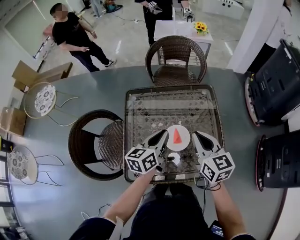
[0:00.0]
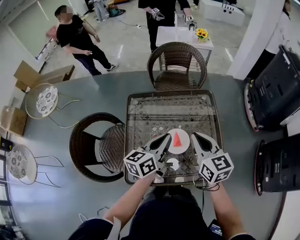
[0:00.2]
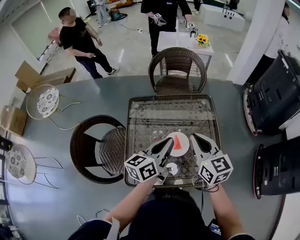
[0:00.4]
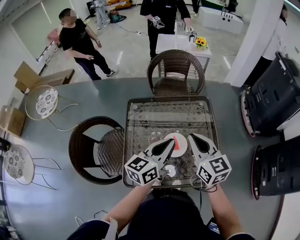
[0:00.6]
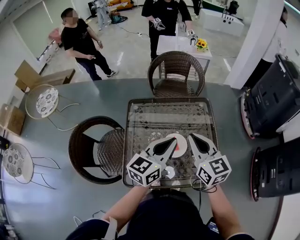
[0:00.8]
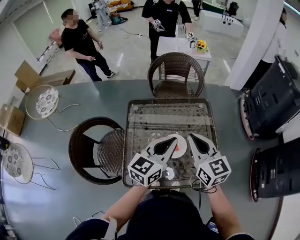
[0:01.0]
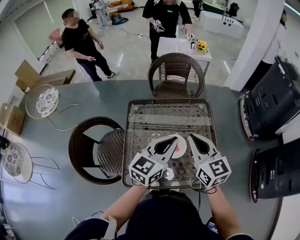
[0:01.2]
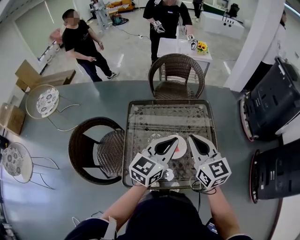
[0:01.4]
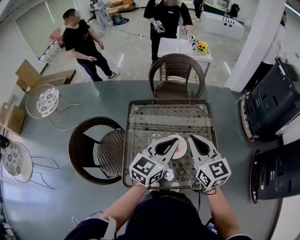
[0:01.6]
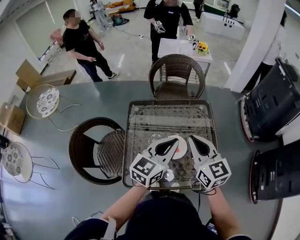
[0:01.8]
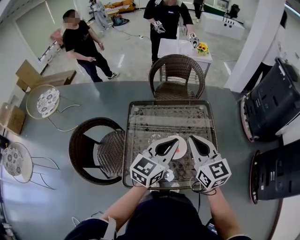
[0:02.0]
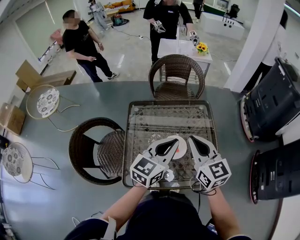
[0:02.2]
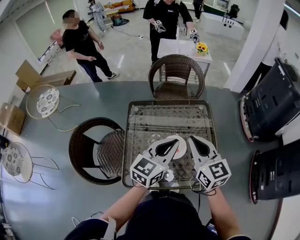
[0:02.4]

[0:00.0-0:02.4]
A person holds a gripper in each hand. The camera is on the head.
0:00.0 to 0:01.2: The left gripper moves upward, approximately 10 cm, and changes its angle by approximately 30 degrees; the right gripper shifts approximately 5 cm upward.
0:01.2 to 0:02.4: Both grippers stay about where they are.

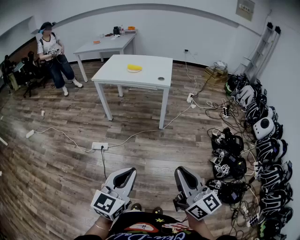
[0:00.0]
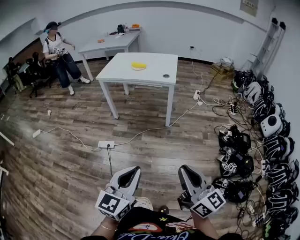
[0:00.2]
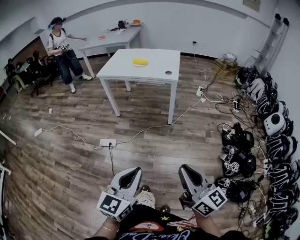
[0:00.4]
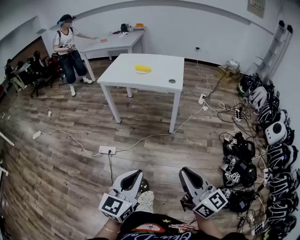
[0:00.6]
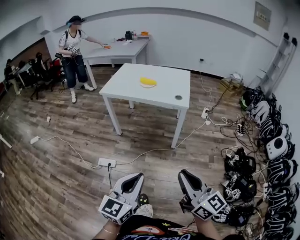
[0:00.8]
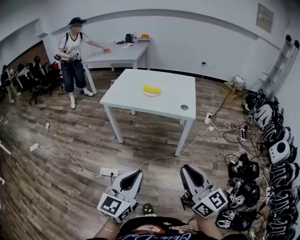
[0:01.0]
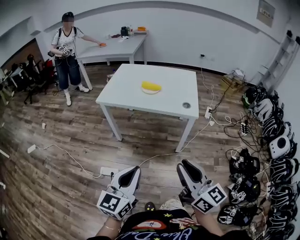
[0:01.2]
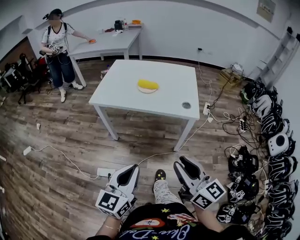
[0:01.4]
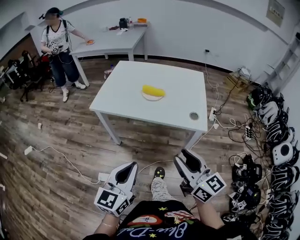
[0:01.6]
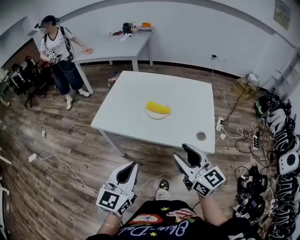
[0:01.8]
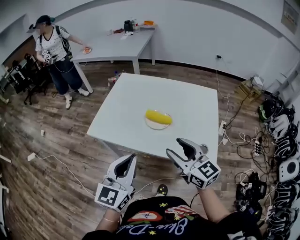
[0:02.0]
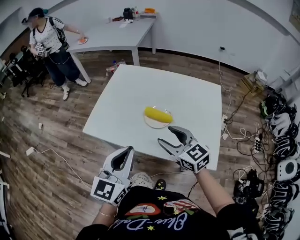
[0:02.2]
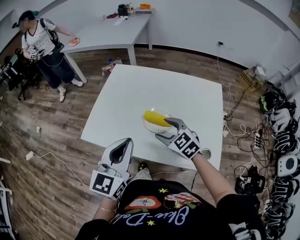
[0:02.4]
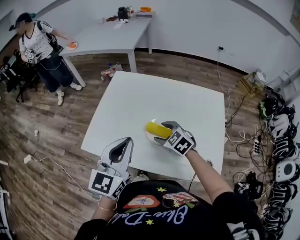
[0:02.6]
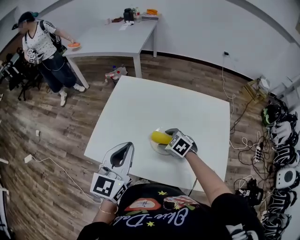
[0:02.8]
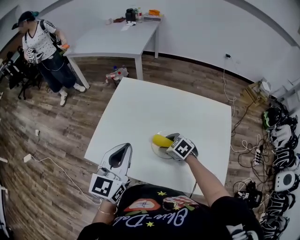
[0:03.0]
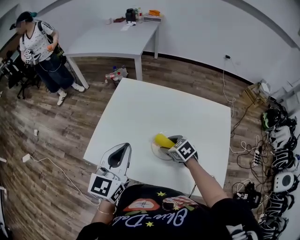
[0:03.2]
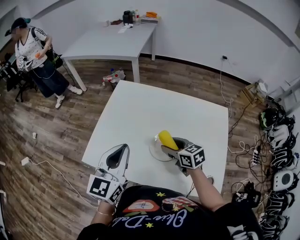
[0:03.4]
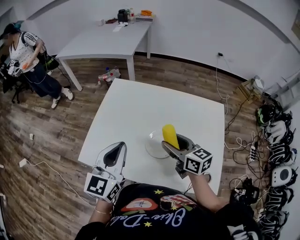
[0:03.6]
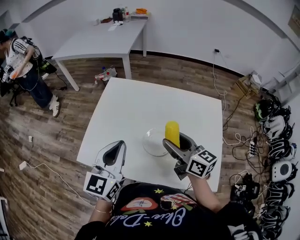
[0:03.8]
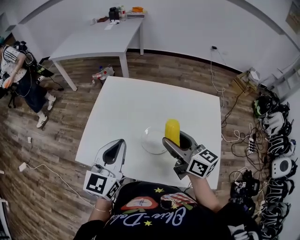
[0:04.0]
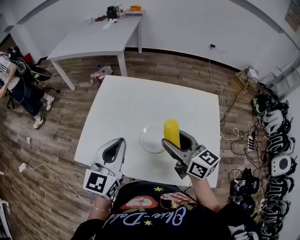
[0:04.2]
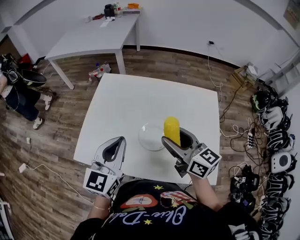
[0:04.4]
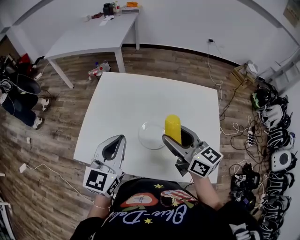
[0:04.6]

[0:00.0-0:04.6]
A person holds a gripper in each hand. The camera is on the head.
0:00.0 to 0:01.6: The two grippers travel together, forward, some 60 cm. The right gripper opens its fingers.
0:01.6 to 0:03.0: The two grippers travel together, forward, roughly 50 cm. The right gripper goes approximately 25 cm downward, points its fingers about 60 degrees further downward, and opens its fingers.
0:03.0 to 0:04.6: The right gripper moves upward, roughly 25 cm, and tilts its fingers roughly 50 degrees upward.

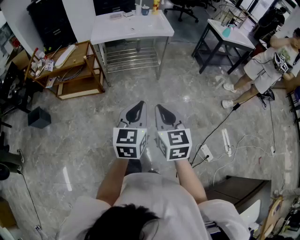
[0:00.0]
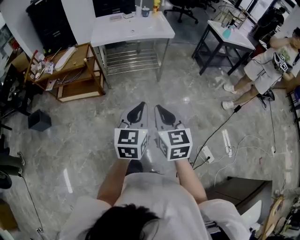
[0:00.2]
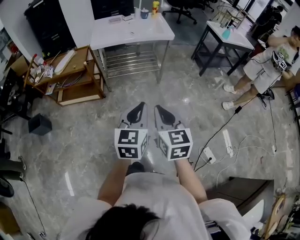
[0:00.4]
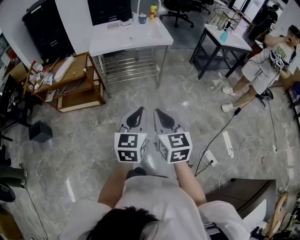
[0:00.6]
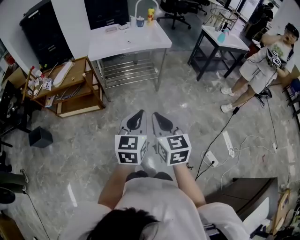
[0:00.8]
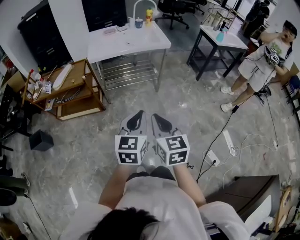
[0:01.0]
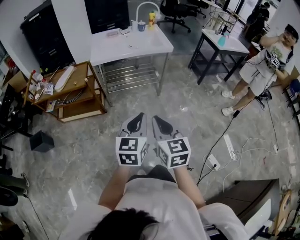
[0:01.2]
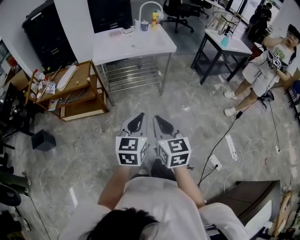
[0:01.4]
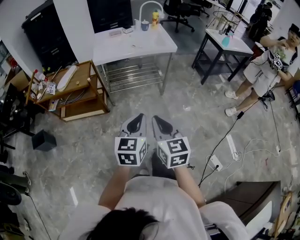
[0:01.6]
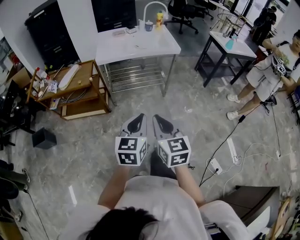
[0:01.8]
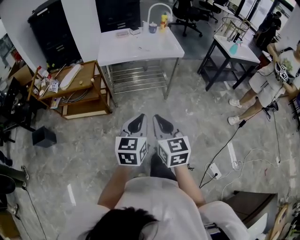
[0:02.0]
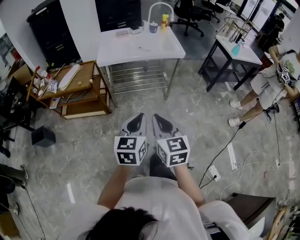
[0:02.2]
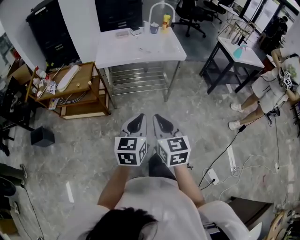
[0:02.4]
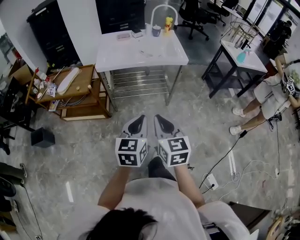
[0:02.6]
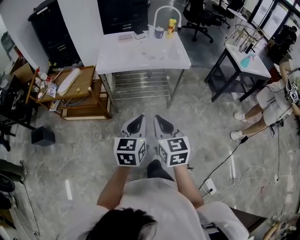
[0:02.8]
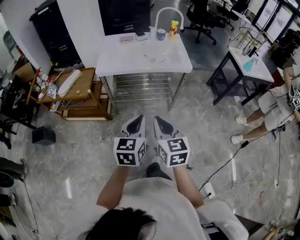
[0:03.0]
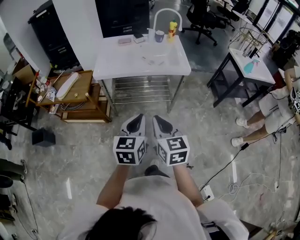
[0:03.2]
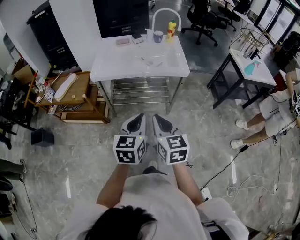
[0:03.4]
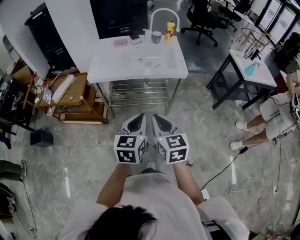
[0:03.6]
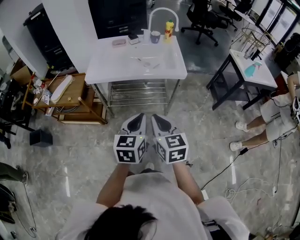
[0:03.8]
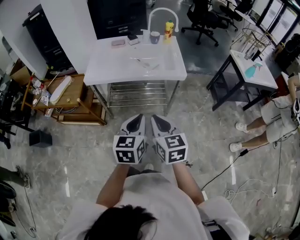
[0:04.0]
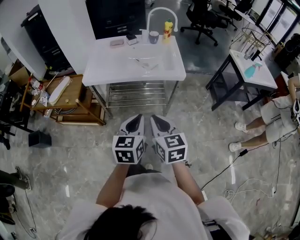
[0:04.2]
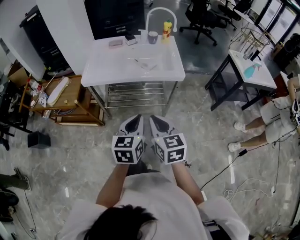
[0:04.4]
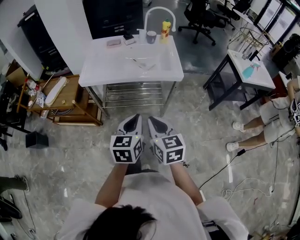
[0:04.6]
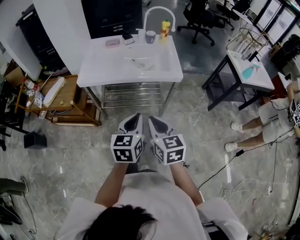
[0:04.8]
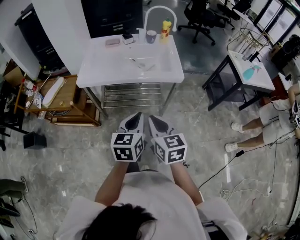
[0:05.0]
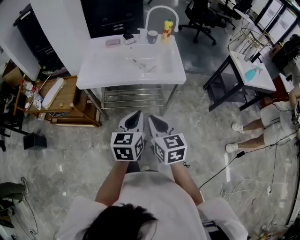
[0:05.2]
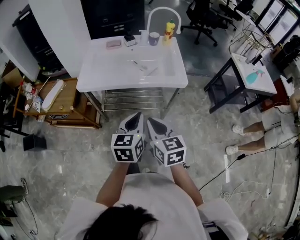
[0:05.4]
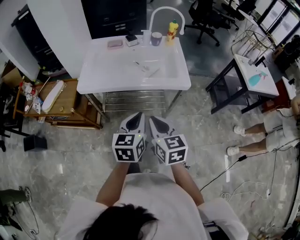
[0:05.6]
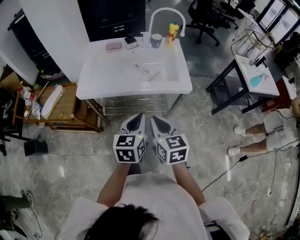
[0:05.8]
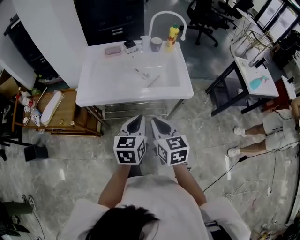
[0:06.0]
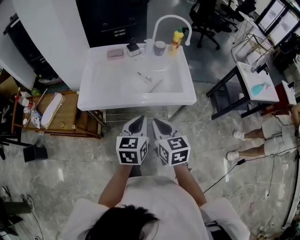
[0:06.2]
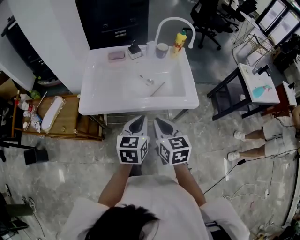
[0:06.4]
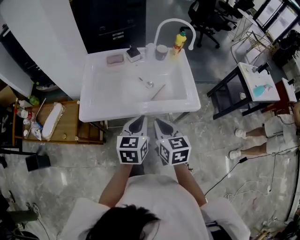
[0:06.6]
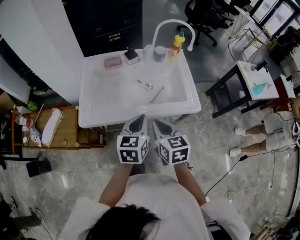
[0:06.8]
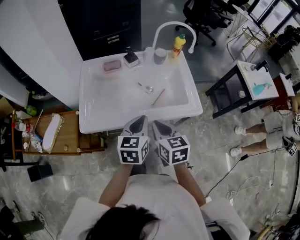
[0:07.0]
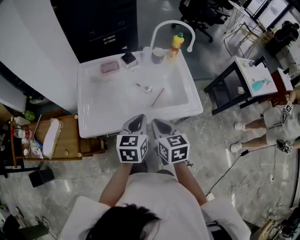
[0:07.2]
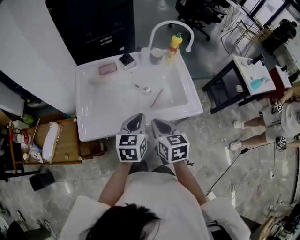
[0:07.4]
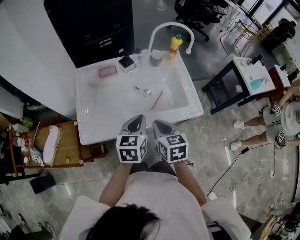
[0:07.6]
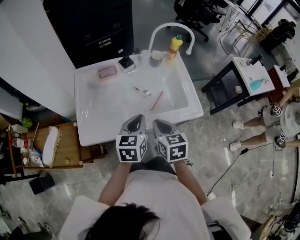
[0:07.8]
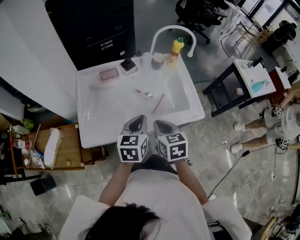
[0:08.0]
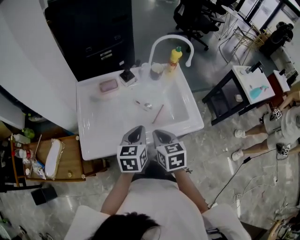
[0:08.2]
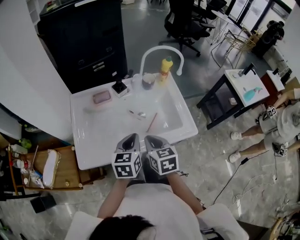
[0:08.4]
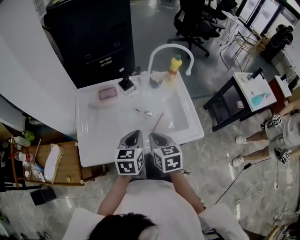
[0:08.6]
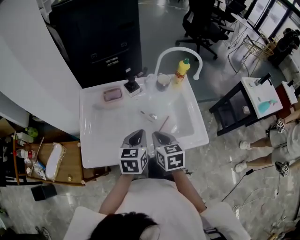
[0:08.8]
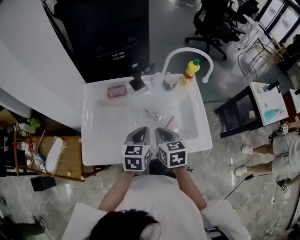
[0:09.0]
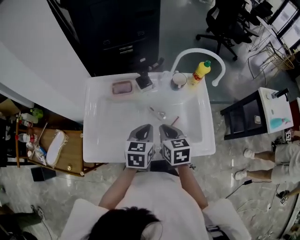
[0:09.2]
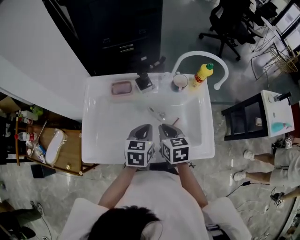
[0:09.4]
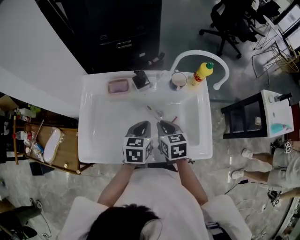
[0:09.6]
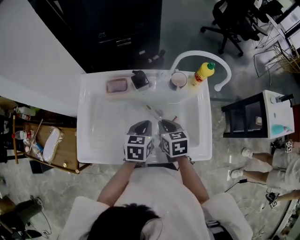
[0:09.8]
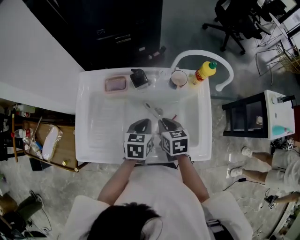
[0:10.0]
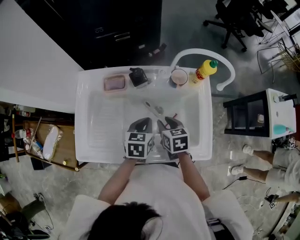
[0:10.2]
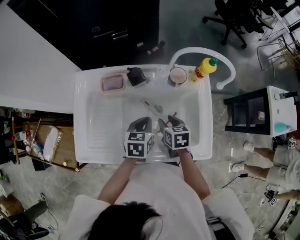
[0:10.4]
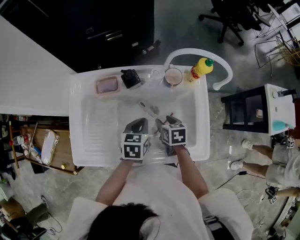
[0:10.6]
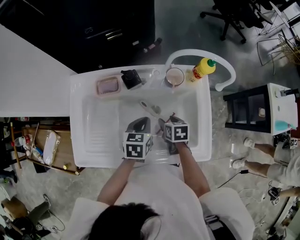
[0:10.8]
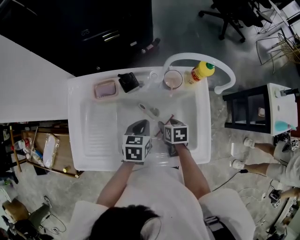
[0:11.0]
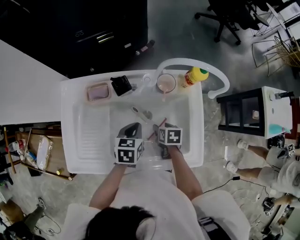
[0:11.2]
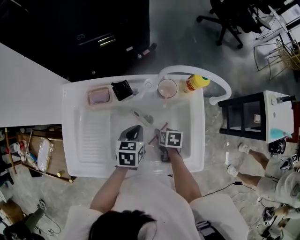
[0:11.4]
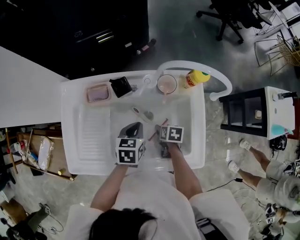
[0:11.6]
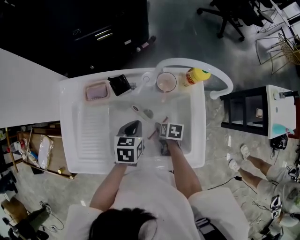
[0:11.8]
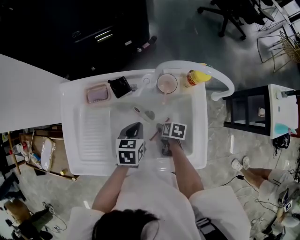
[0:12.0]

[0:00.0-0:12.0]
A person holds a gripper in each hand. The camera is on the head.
0:00.0 to 0:01.6: The left gripper moves forward and to the left, some 10 cm. The right gripper heads to the left and forward, covering roughly 10 cm.
0:01.6 to 0:03.0: Both grippers move forward, approximately 20 cm.
0:03.0 to 0:04.4: Both grippers travel together forward and to the right, approximately 15 cm.
0:04.4 to 0:06.0: The two grippers go some 15 cm forward.
0:06.0 to 0:07.6: The grippers both shift forward by roughly 20 cm.
0:07.6 to 0:09.0: The grippers both shift forward by approximately 10 cm.
0:09.0 to 0:10.4: The right gripper goes approximately 15 cm downward, forward and to the right, and opens up; the left gripper is displaced downward and forward by about 10 cm.
0:10.4 to 0:12.0: The right gripper goes roughly 15 cm downward and to the right, and swivels approximately 30 degrees.

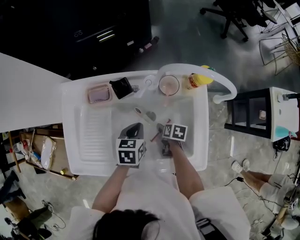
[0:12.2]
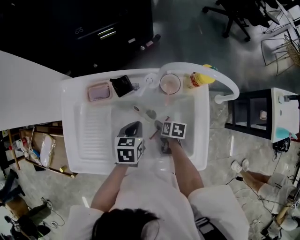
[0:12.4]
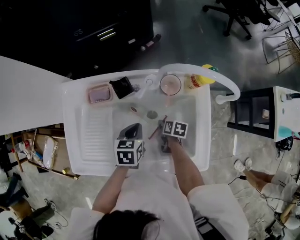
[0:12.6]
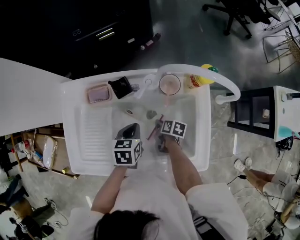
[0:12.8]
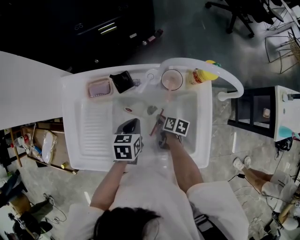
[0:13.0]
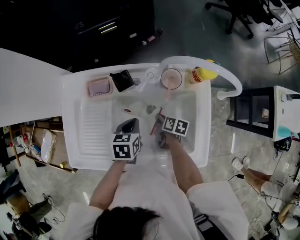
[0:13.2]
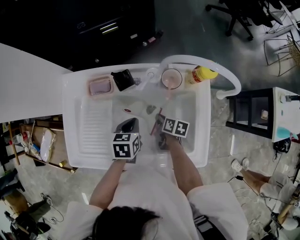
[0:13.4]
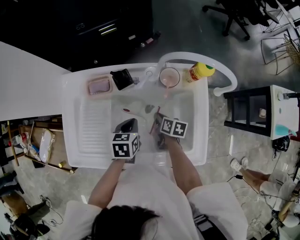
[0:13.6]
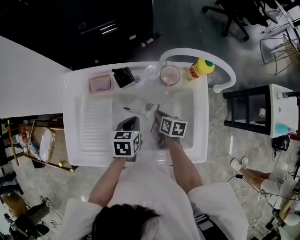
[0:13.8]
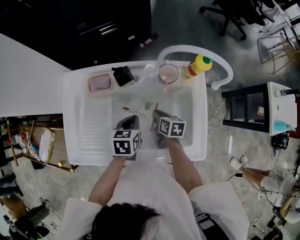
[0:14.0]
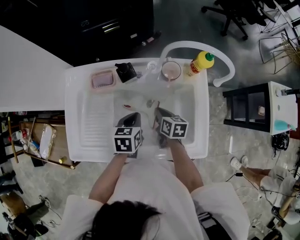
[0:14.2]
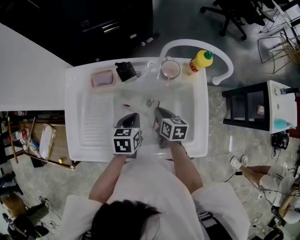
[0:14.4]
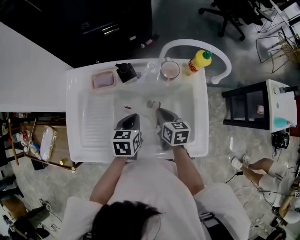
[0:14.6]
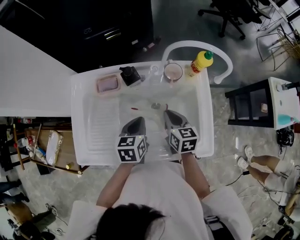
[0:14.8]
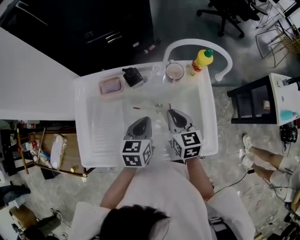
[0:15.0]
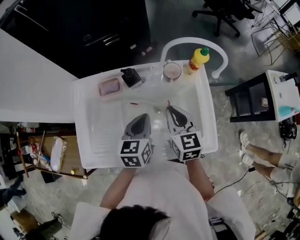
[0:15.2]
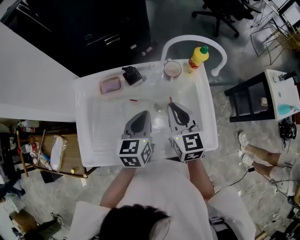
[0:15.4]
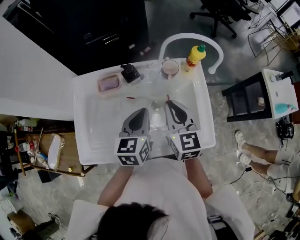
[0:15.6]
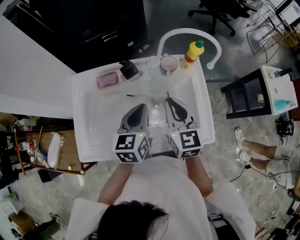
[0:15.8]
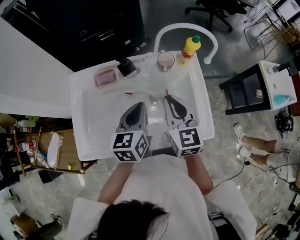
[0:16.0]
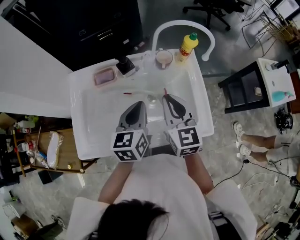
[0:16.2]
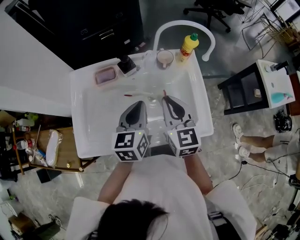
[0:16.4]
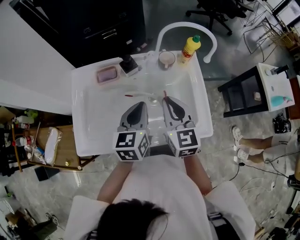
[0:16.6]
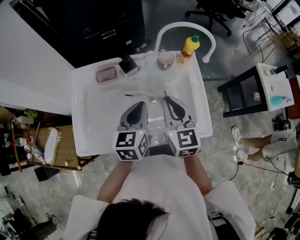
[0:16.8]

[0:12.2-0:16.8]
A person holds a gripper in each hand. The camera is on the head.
0:12.2 to 0:13.8: The right gripper goes some 5 cm upward, and closes up.
0:13.8 to 0:15.2: The right gripper moves upward, some 20 cm, and turns by some 50 degrees. The left gripper moves upward, roughly 10 cm, and swivels approximately 20 degrees.
0:15.2 to 0:16.8: The right gripper shifts roughly 10 cm upward and backward. The left gripper travels upward by some 5 cm.
